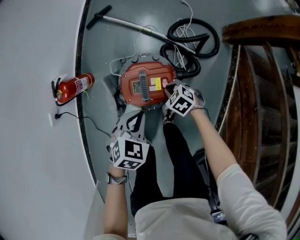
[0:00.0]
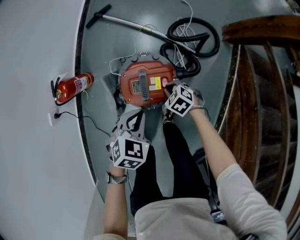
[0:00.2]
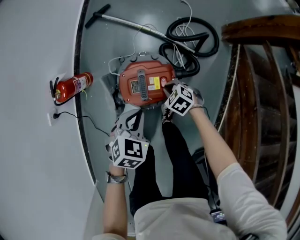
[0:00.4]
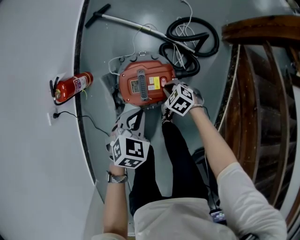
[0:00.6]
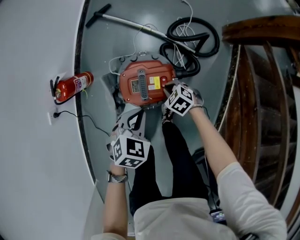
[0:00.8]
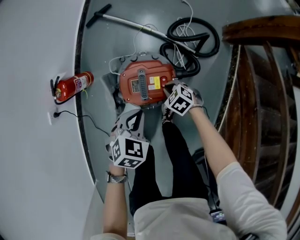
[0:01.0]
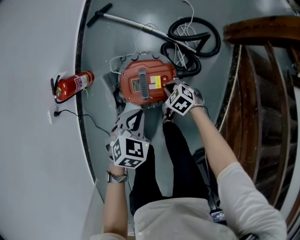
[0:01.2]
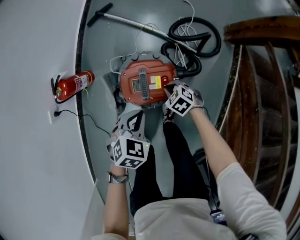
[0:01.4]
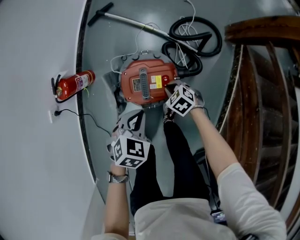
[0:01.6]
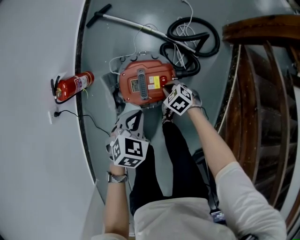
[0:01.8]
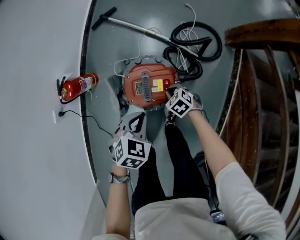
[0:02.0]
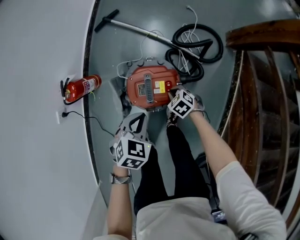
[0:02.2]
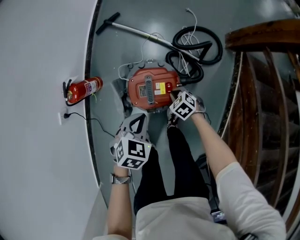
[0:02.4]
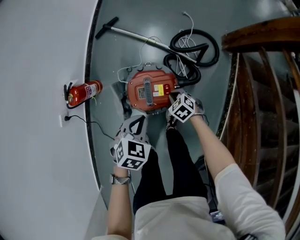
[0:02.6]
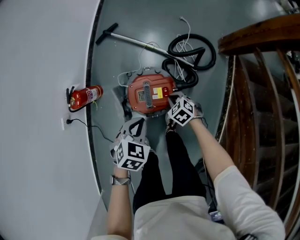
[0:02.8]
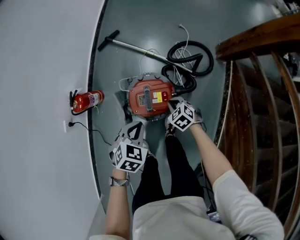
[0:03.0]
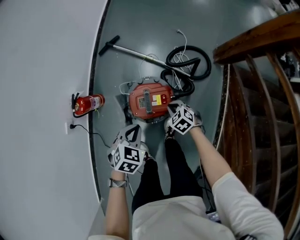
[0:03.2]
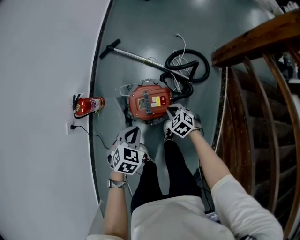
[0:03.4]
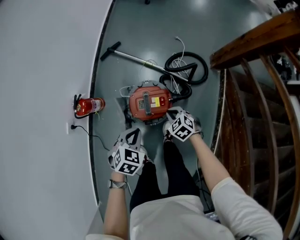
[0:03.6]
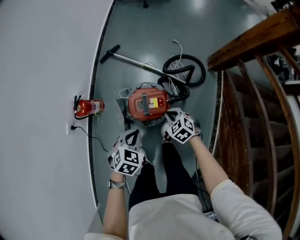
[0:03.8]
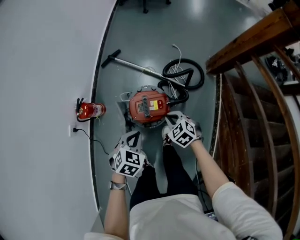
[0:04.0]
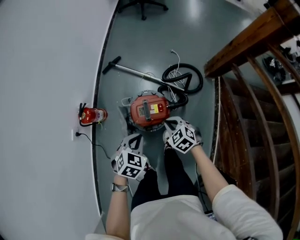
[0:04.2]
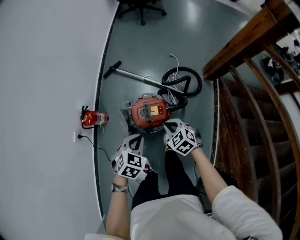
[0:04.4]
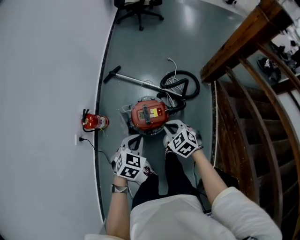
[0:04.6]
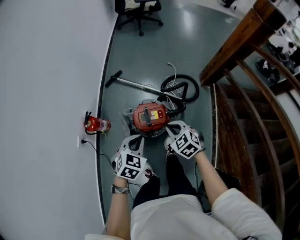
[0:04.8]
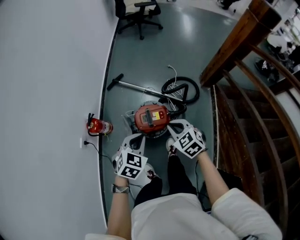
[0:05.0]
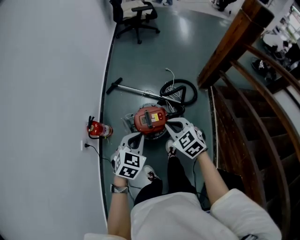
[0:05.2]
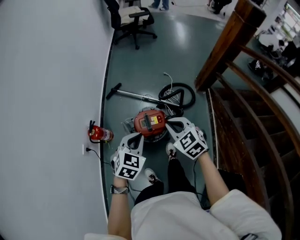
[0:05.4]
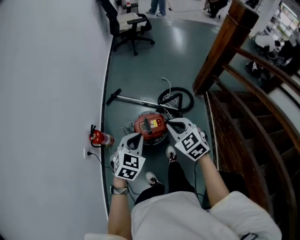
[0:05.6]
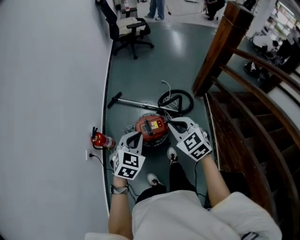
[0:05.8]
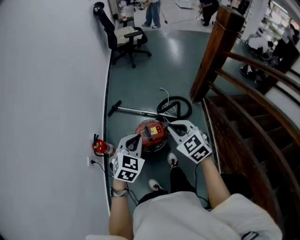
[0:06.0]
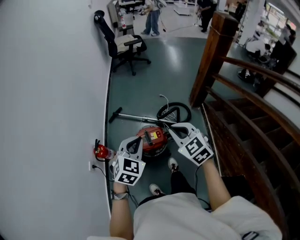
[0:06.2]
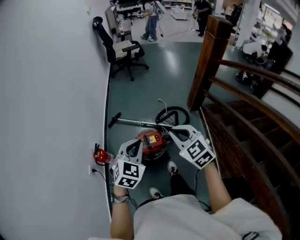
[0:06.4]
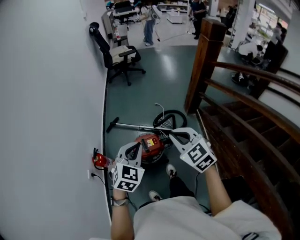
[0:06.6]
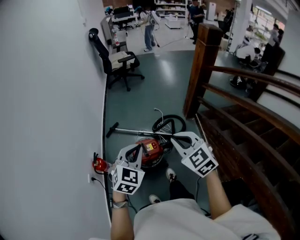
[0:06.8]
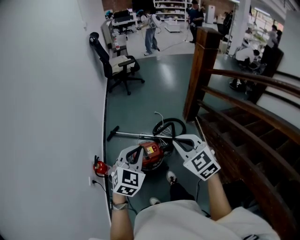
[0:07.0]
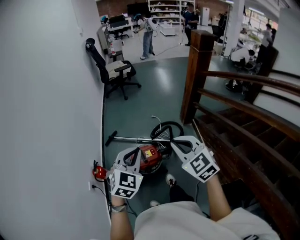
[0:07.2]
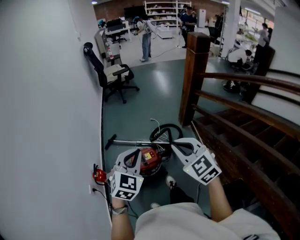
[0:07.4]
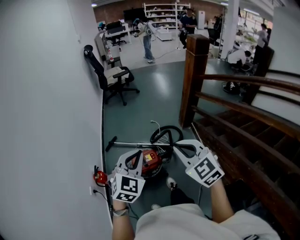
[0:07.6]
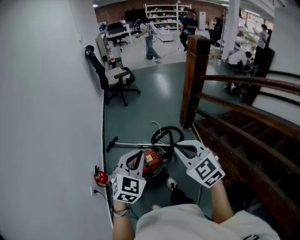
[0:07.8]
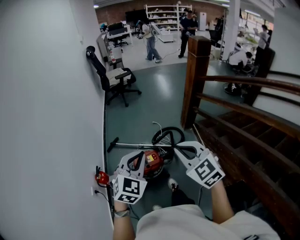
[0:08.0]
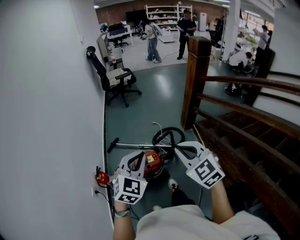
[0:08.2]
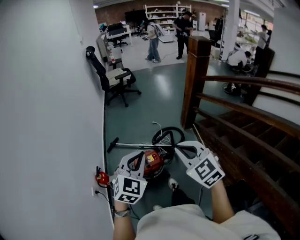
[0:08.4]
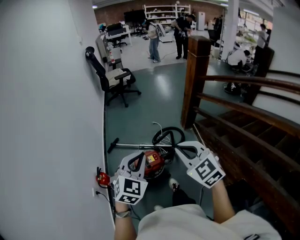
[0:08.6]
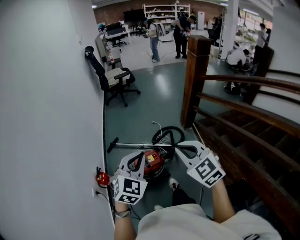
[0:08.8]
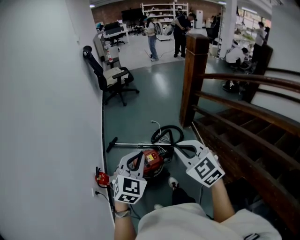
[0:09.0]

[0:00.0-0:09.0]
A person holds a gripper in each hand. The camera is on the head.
0:00.0 to 0:01.6: The grippers make only small movements.
0:01.6 to 0:03.0: Both grippers move upward, roughly 10 cm.
0:03.0 to 0:04.4: The left gripper travels upward and backward by some 10 cm, while the right gripper is displaced upward by approximately 20 cm.
0:04.4 to 0:06.0: The grippers both shift upward by some 25 cm. The left gripper changes its angle by roughly 20 degrees; the right gripper changes its angle by some 30 degrees.
0:06.0 to 0:07.6: The right gripper travels upward and backward by some 20 cm. The left gripper moves upward, about 15 cm.
0:07.6 to 0:09.0: Neither gripper changes place.

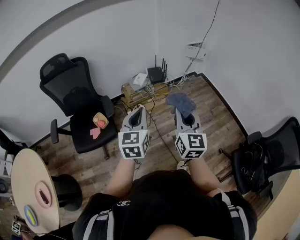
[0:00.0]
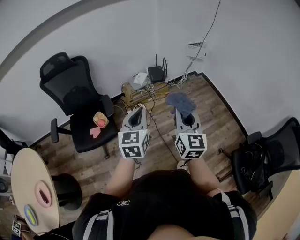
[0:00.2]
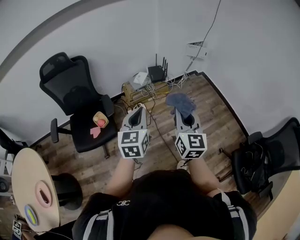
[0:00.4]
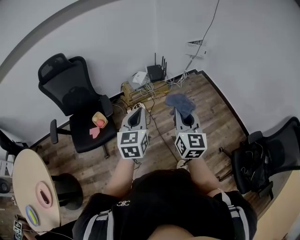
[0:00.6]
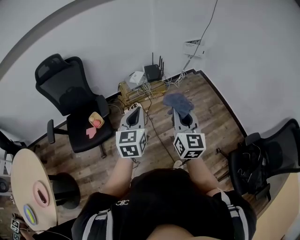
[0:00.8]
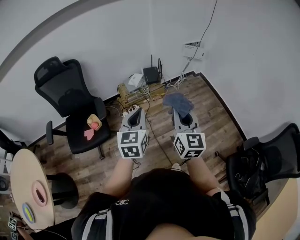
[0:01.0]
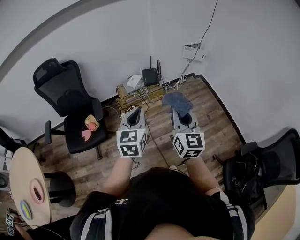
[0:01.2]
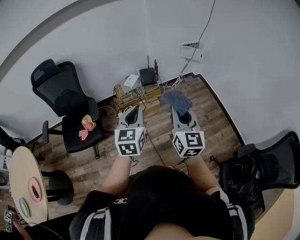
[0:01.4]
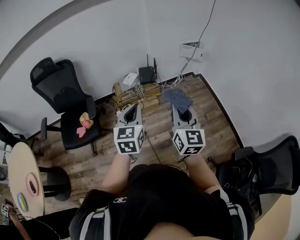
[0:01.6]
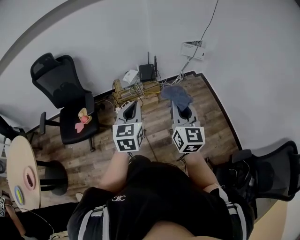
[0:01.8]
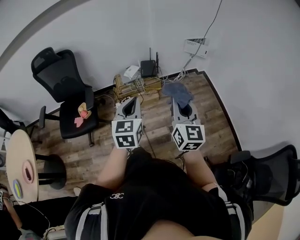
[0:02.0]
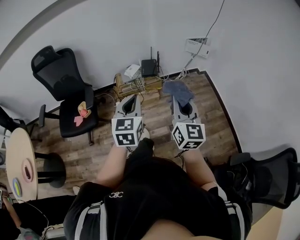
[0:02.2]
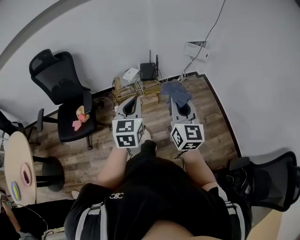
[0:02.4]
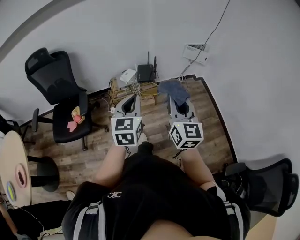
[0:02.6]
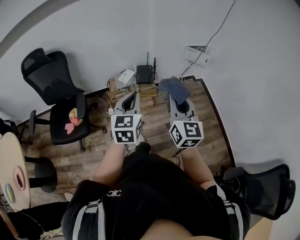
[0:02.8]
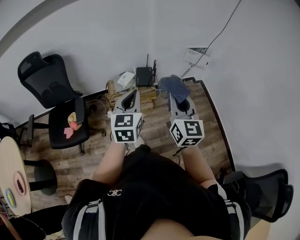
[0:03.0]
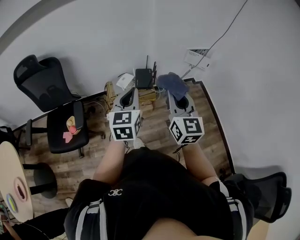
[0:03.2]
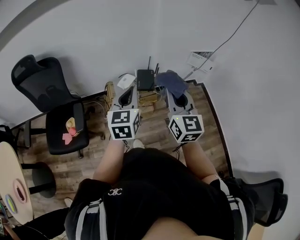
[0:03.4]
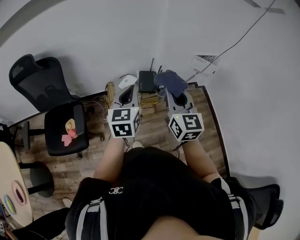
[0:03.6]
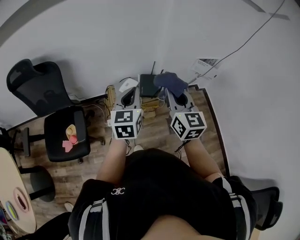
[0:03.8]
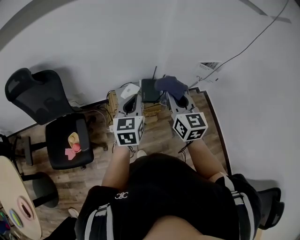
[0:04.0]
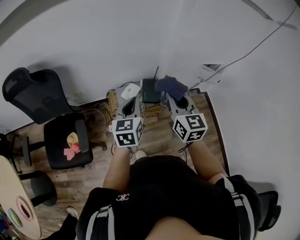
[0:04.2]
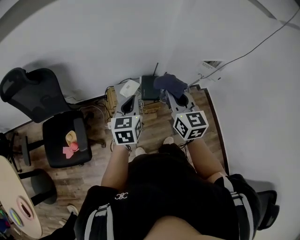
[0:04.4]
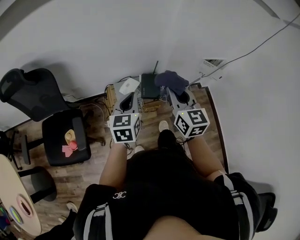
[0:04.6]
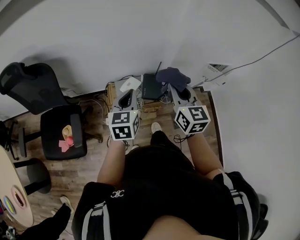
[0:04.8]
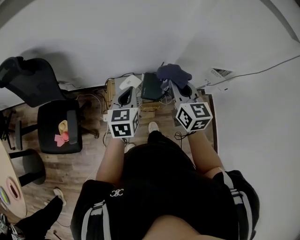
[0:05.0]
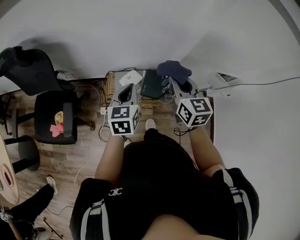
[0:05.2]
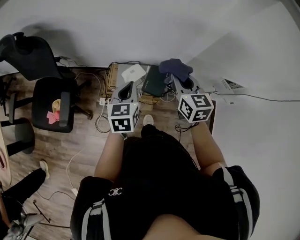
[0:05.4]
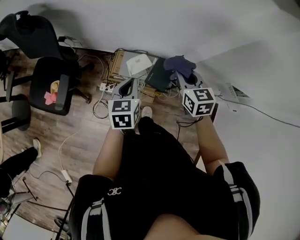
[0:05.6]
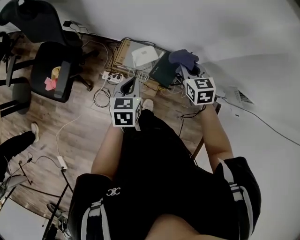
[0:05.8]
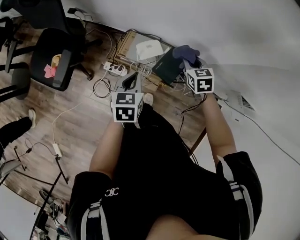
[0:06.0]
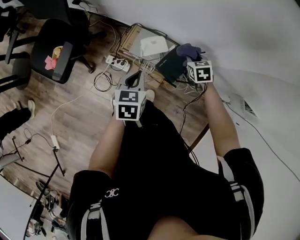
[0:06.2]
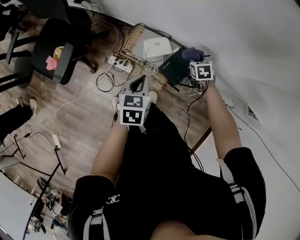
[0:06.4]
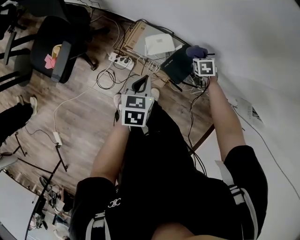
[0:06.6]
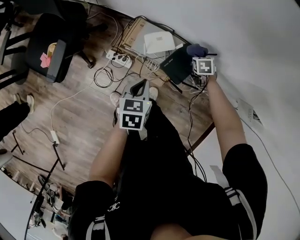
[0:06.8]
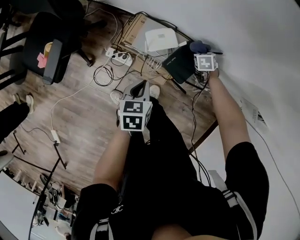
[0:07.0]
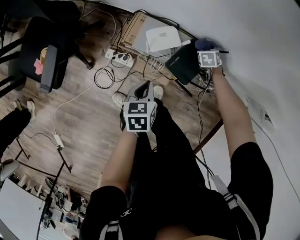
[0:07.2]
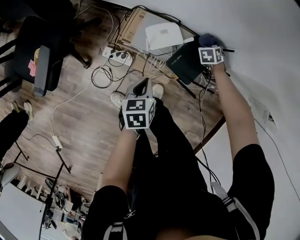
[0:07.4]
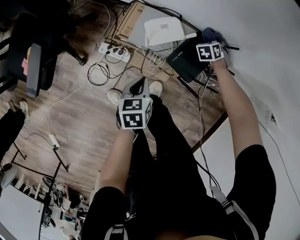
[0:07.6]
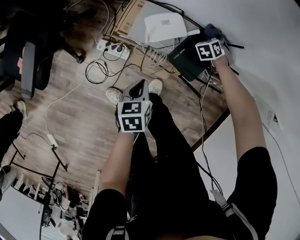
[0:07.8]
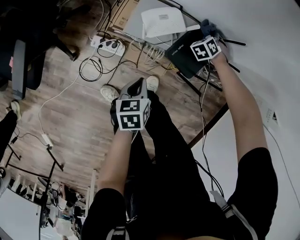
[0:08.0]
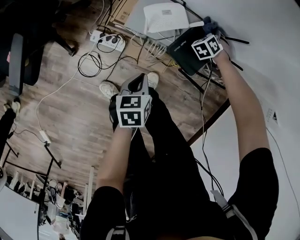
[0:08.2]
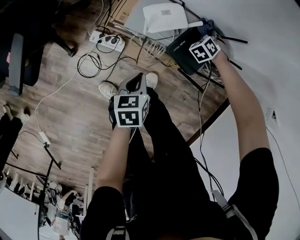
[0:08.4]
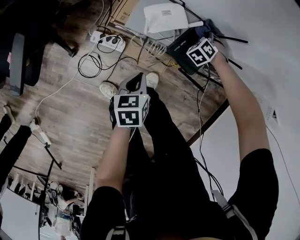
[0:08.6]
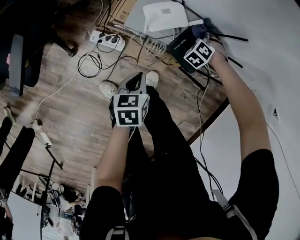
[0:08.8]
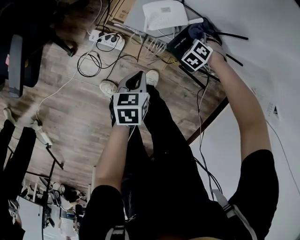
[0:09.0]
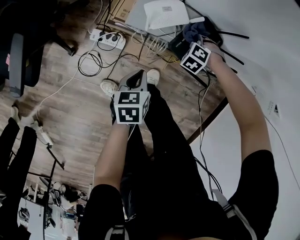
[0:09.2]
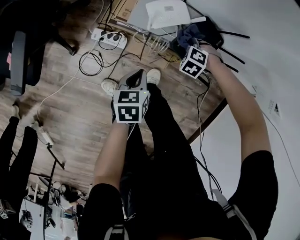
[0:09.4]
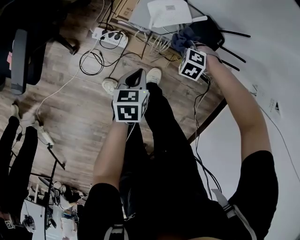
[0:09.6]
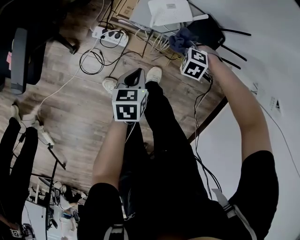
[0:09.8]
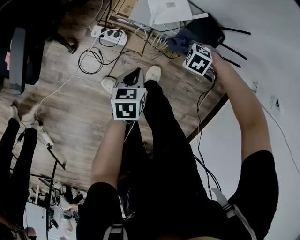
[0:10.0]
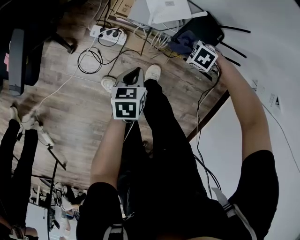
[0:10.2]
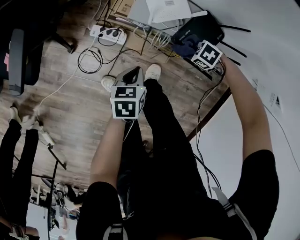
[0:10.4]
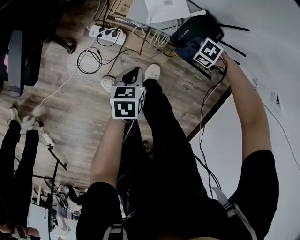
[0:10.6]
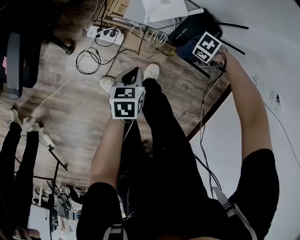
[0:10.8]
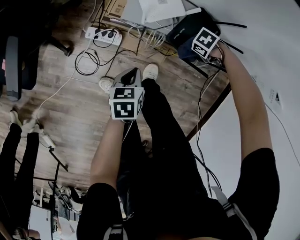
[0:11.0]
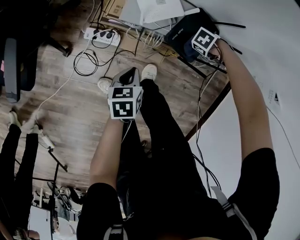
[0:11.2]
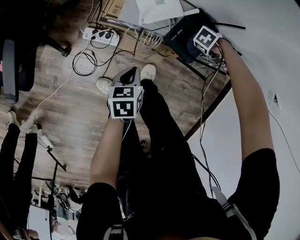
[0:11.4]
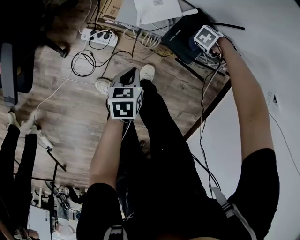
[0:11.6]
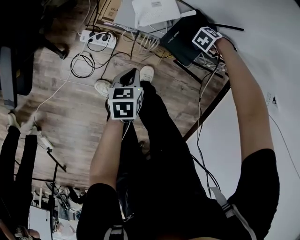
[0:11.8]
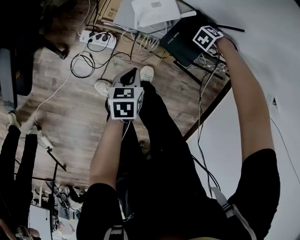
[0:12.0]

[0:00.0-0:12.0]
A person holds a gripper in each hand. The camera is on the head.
0:00.0 to 0:01.6: The grippers both shift to the right and forward by some 20 cm.
0:01.6 to 0:03.0: Both grippers travel together forward, roughly 20 cm.
0:03.0 to 0:04.4: The grippers both shift forward and to the left by approximately 30 cm.
0:04.4 to 0:06.0: The left gripper travels downward by some 20 cm, and swivels some 40 degrees. Meanwhile the right gripper shifts by some 40 cm, and tilts its fingers approximately 40 degrees downward.
0:06.0 to 0:07.6: The grippers both shift downward by some 30 cm. The right gripper rotates roughly 40 degrees.
0:07.6 to 0:09.0: The left gripper ends up about 5 cm from where it was. Meanwhile the right gripper shifts approximately 10 cm backward, and changes its angle by some 40 degrees.
0:09.0 to 0:10.4: The right gripper shifts by some 15 cm, and turns by some 50 degrees.
0:10.4 to 0:12.0: The right gripper moves approximately 20 cm, and turns by some 40 degrees.

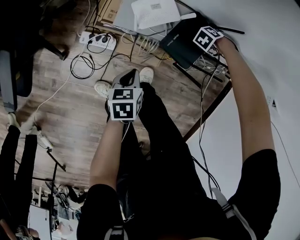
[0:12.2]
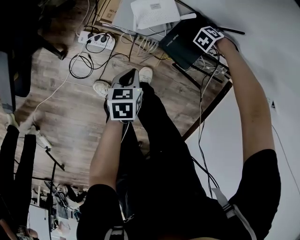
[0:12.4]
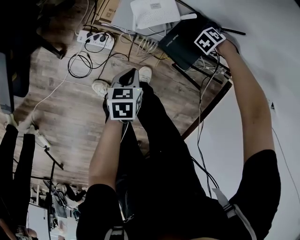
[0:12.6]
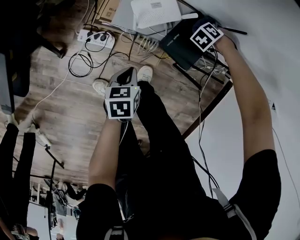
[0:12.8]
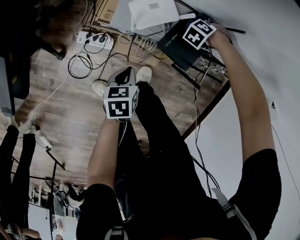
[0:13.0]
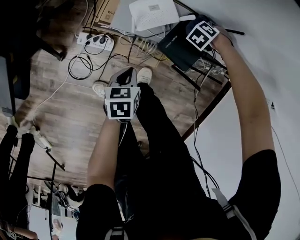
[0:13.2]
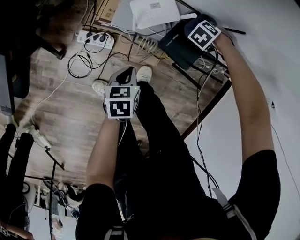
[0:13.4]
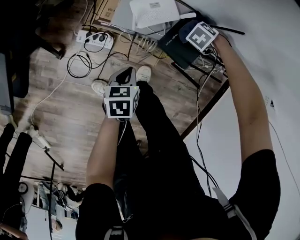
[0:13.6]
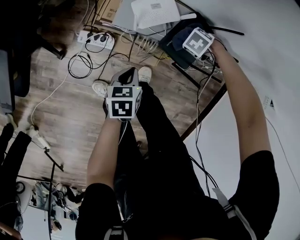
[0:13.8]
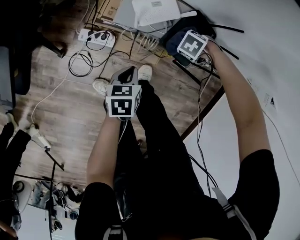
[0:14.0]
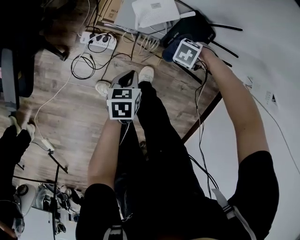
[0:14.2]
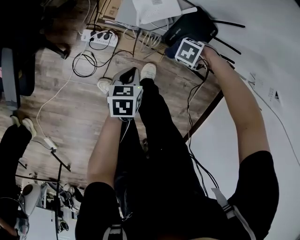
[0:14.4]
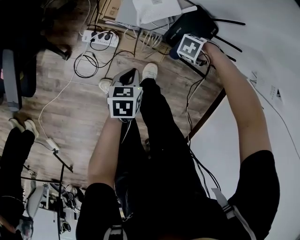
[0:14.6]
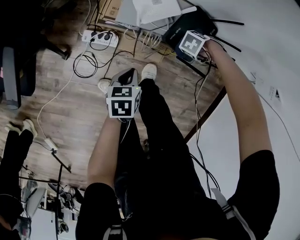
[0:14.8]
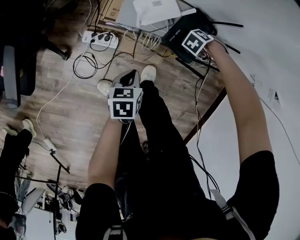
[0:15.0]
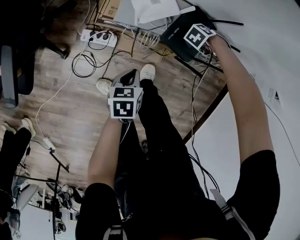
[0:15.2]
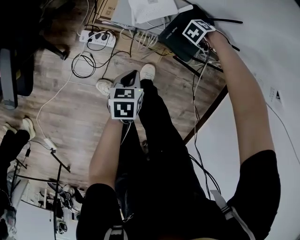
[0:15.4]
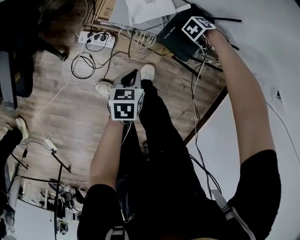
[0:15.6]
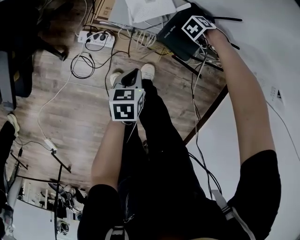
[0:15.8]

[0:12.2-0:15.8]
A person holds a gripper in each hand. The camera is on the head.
0:12.2 to 0:14.0: The right gripper changes place by approximately 15 cm, and rotates some 20 degrees.
0:14.0 to 0:15.8: The right gripper changes place by roughly 15 cm, and rotates about 30 degrees.
